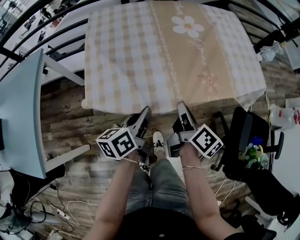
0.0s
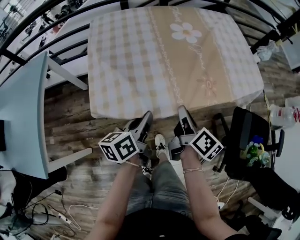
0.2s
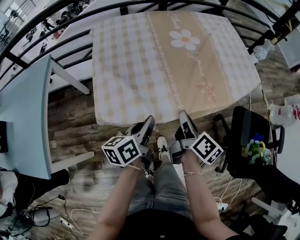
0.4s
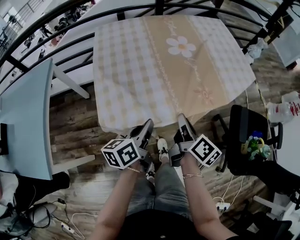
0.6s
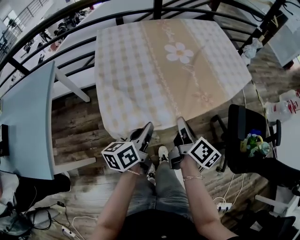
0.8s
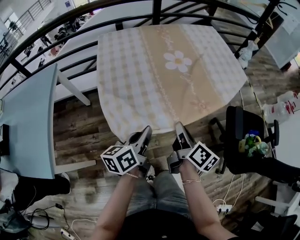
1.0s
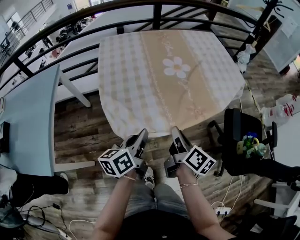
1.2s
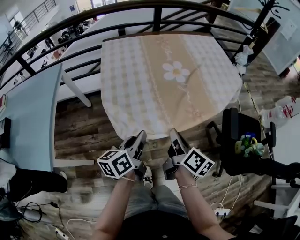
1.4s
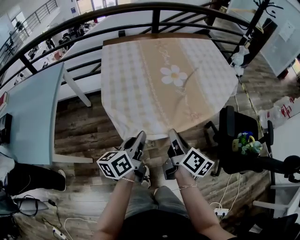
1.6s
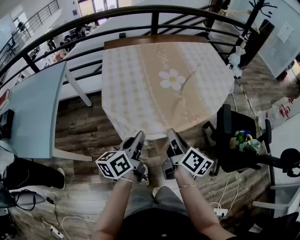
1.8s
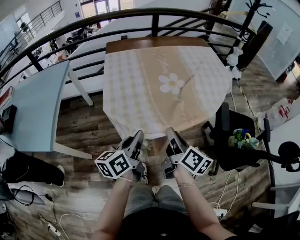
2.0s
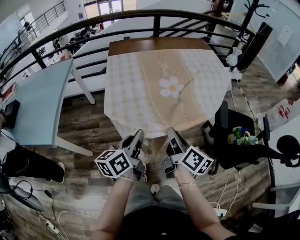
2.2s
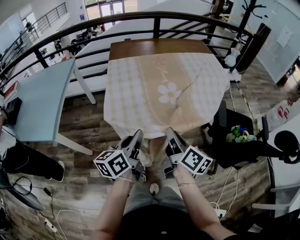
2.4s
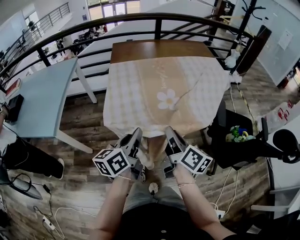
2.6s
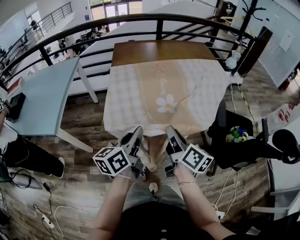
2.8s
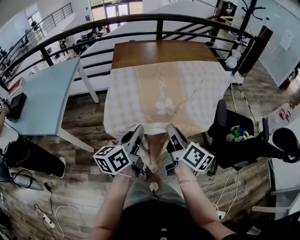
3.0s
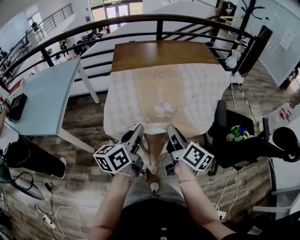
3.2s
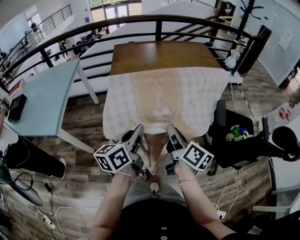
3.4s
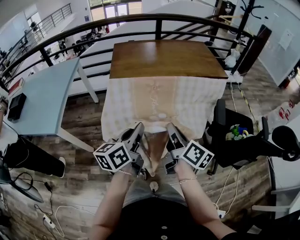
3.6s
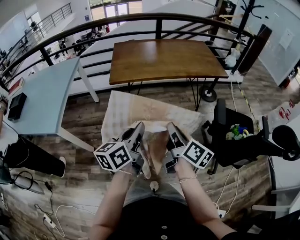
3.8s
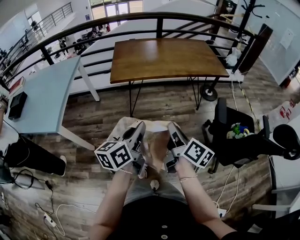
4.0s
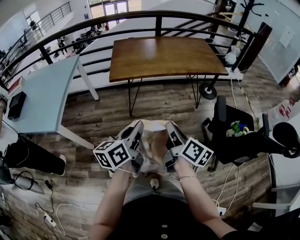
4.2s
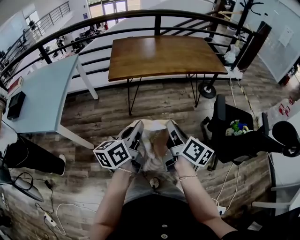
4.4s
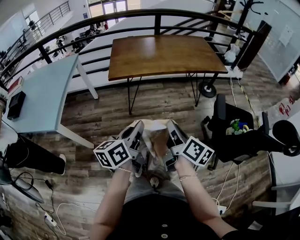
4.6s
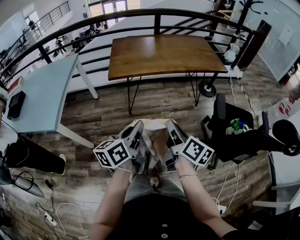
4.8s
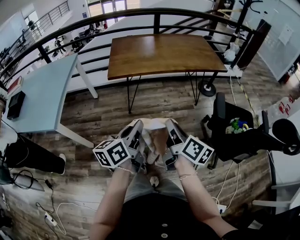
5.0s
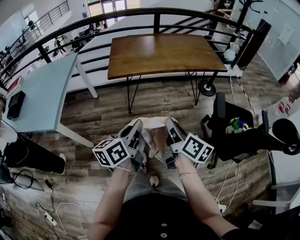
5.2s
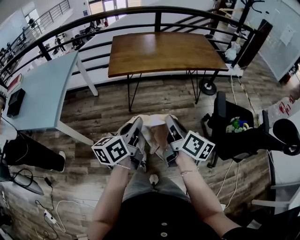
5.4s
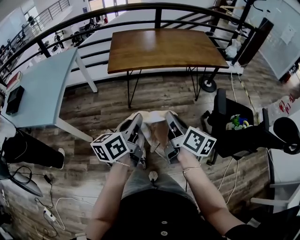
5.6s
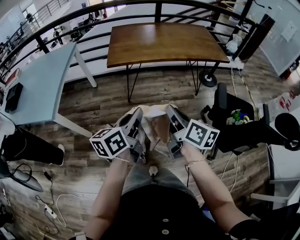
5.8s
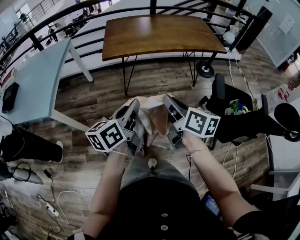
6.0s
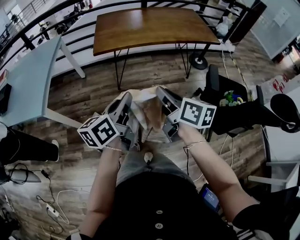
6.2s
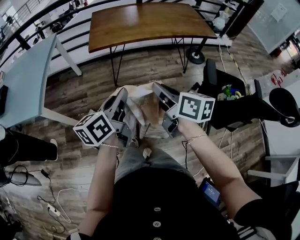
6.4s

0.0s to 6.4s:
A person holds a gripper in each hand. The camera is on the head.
0.0s to 1.6s: The two grippers go roughly 15 cm upward.
1.6s to 3.2s: The grippers both shift backward and upward by roughly 20 cm.
3.2s to 4.8s: There are only small adjustments of the grippers.
4.8s to 6.4s: The right gripper changes its angle by about 20 degrees.

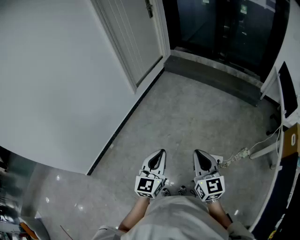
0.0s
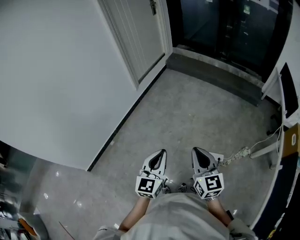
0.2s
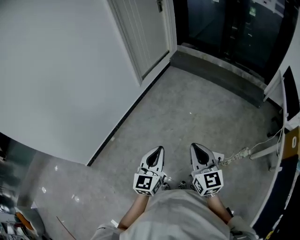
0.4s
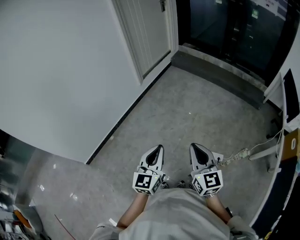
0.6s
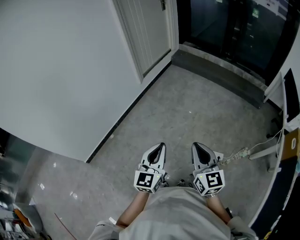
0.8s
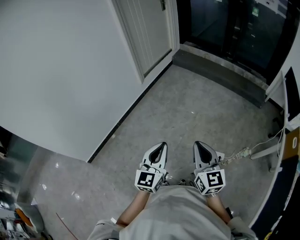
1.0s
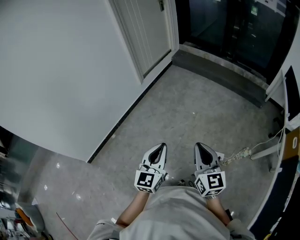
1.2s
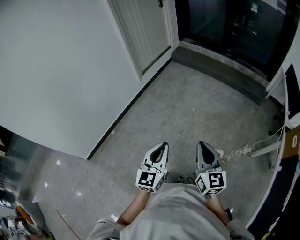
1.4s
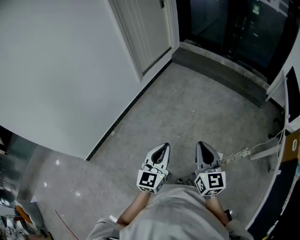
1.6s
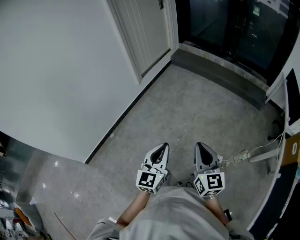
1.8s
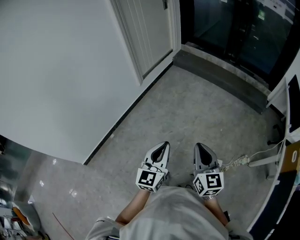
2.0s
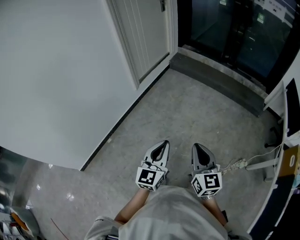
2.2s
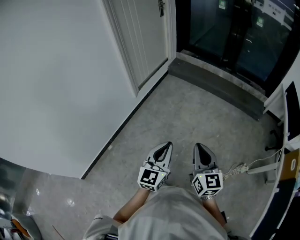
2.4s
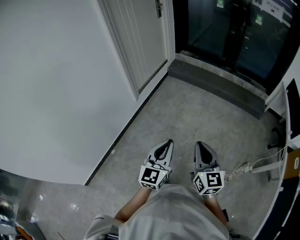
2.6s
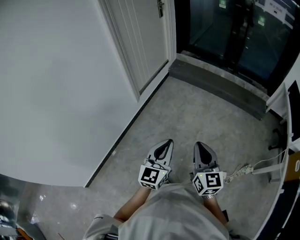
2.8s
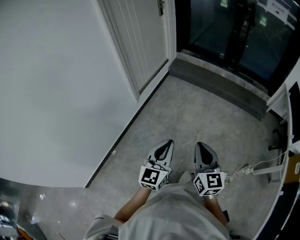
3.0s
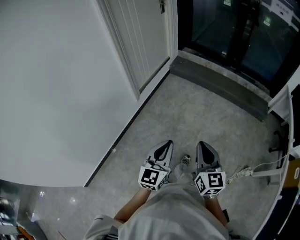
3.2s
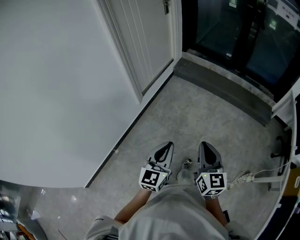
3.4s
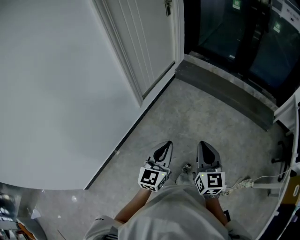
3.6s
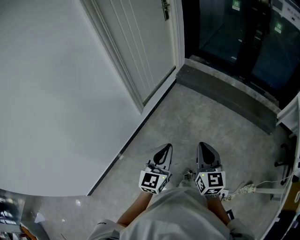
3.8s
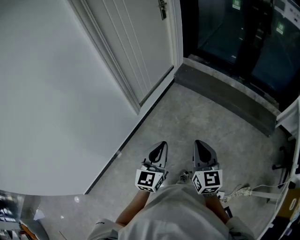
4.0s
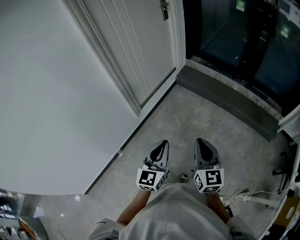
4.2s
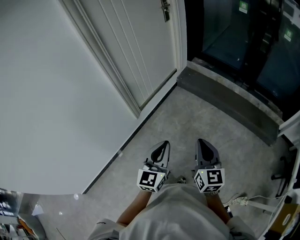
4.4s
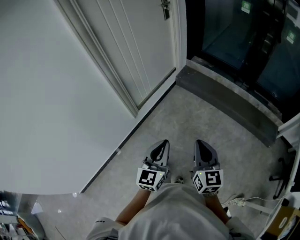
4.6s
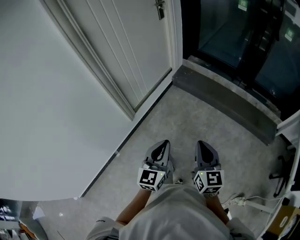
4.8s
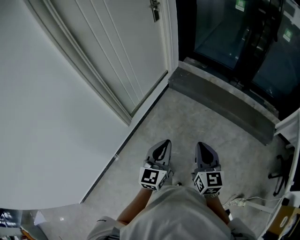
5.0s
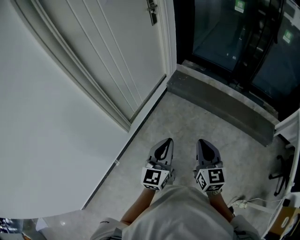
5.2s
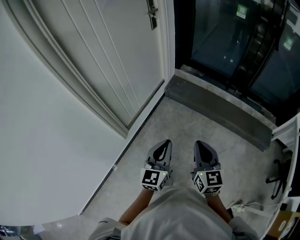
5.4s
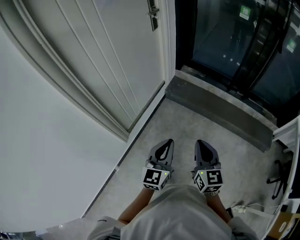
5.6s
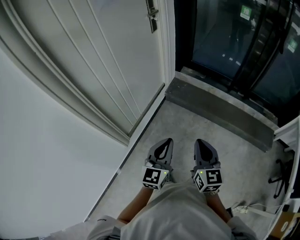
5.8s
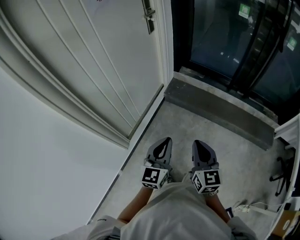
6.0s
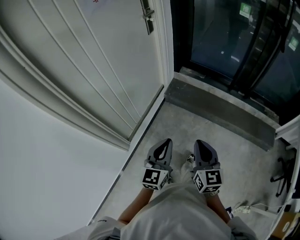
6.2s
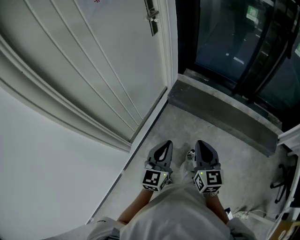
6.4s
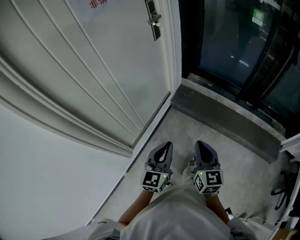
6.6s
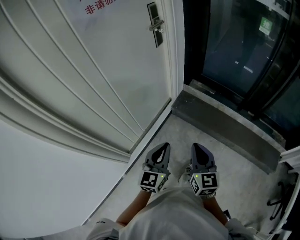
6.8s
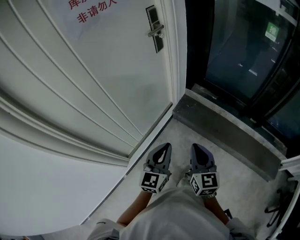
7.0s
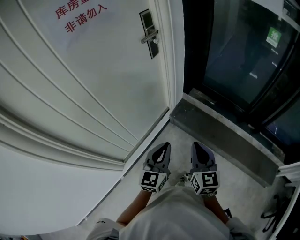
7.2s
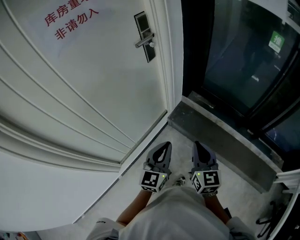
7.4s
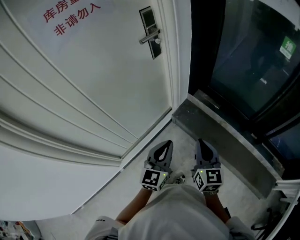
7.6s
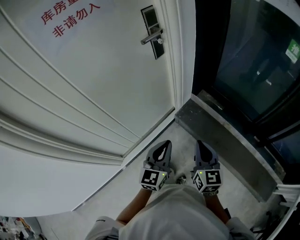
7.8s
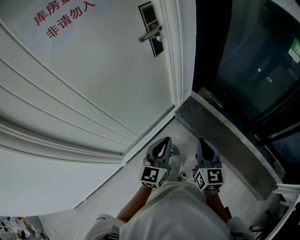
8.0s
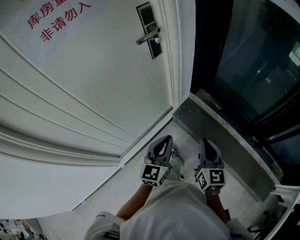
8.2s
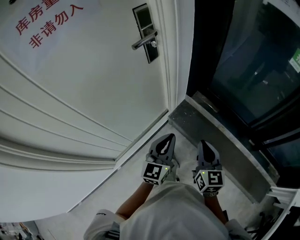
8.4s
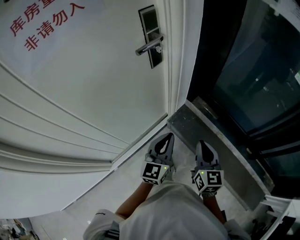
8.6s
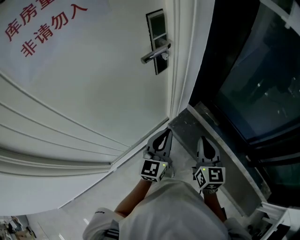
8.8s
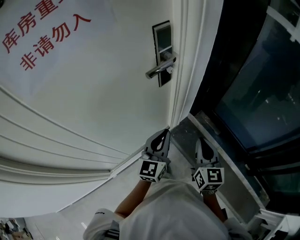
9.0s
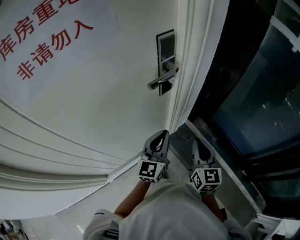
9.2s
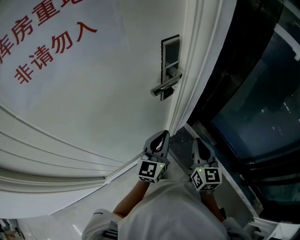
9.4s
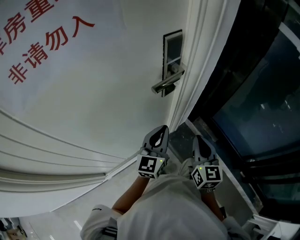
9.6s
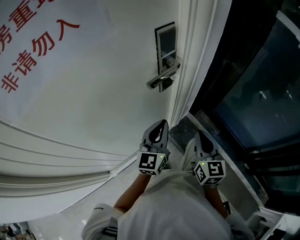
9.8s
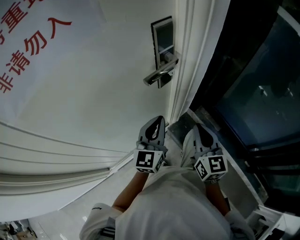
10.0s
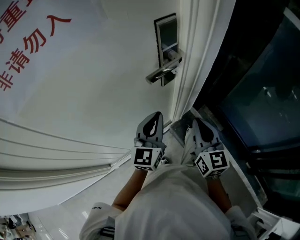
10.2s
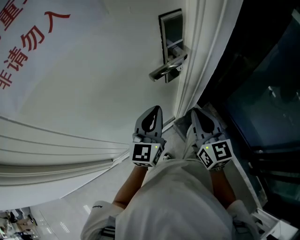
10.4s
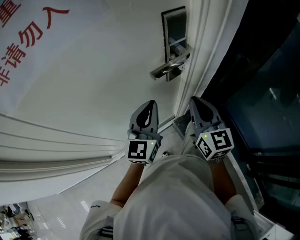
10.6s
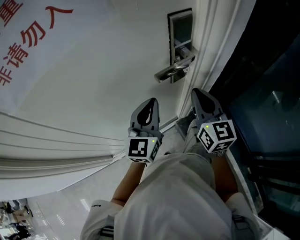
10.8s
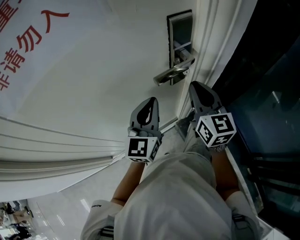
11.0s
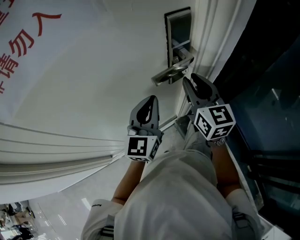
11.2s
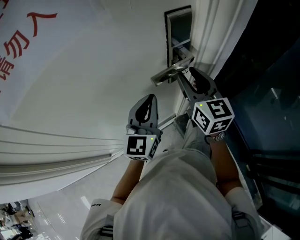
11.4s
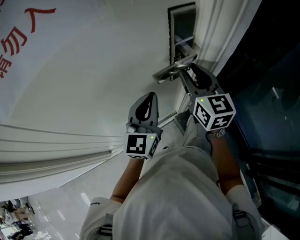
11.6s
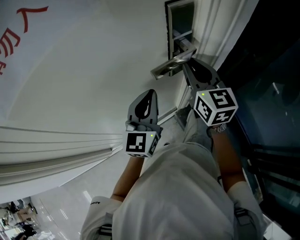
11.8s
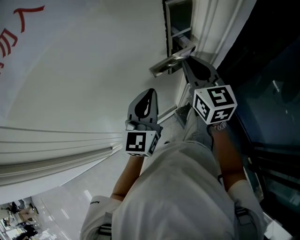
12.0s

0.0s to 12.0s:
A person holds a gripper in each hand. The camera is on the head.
0.0s to 1.6s: The left gripper reaches roughly 5 cm to the left, then returns; the right gripper goes to the left and returns, about 5 cm each way.
1.6s to 3.0s: The grippers both shift forward and to the left by roughly 30 cm.
3.0s to 4.4s: Both grippers move forward, about 30 cm.
4.4s to 6.0s: The grippers both shift forward by some 35 cm.
6.0s to 7.6s: The grippers both shift forward by some 35 cm.
7.6s to 9.0s: The two grippers go some 25 cm forward.
9.0s to 10.4s: The grippers both shift forward and to the left by about 10 cm.
10.4s to 12.0s: The right gripper travels forward by some 15 cm, and opens, then closes again.

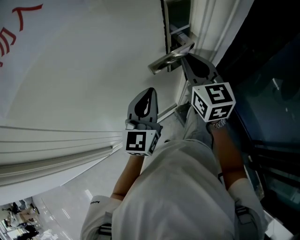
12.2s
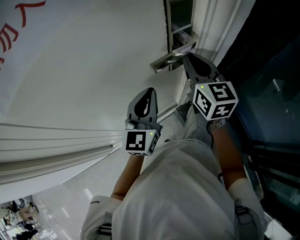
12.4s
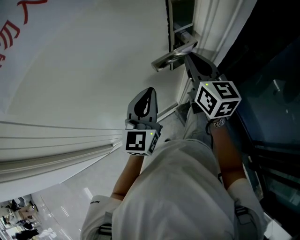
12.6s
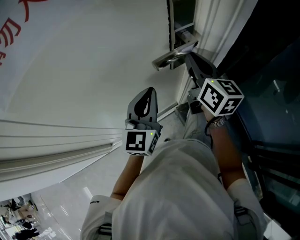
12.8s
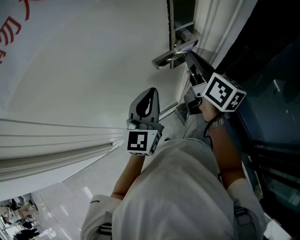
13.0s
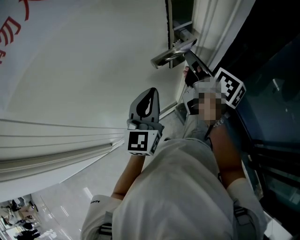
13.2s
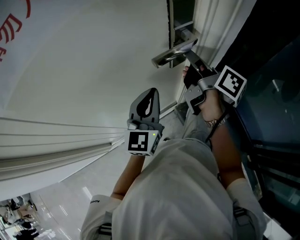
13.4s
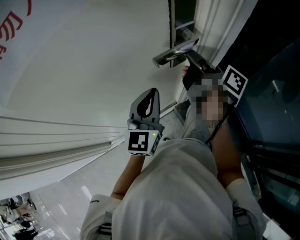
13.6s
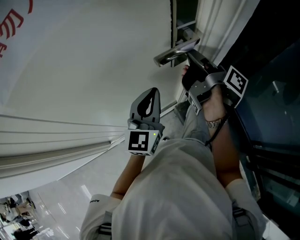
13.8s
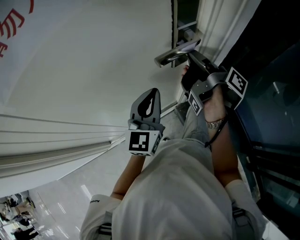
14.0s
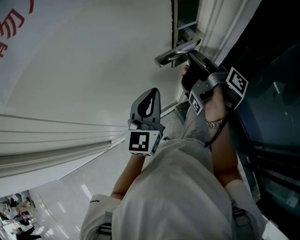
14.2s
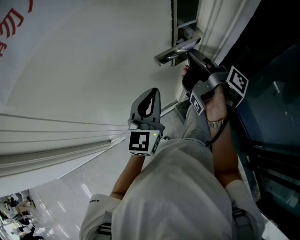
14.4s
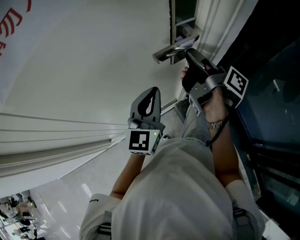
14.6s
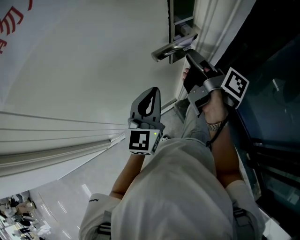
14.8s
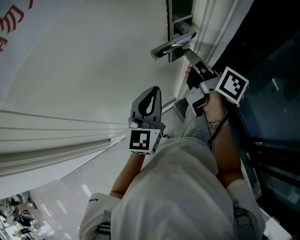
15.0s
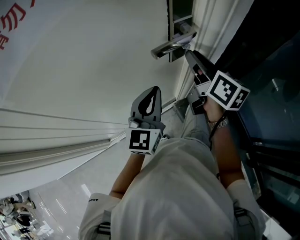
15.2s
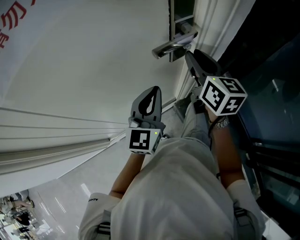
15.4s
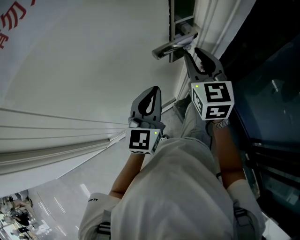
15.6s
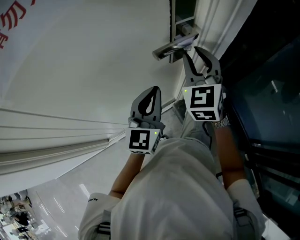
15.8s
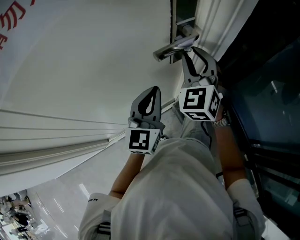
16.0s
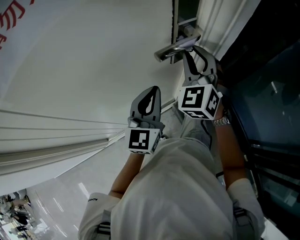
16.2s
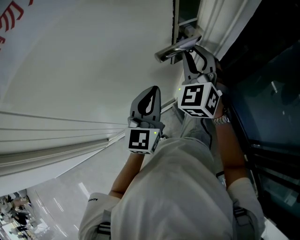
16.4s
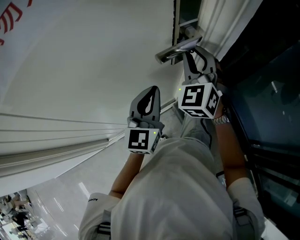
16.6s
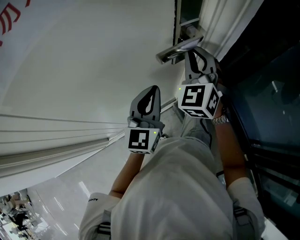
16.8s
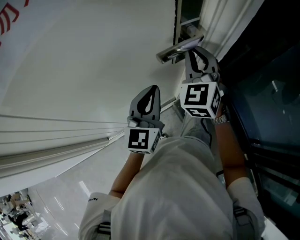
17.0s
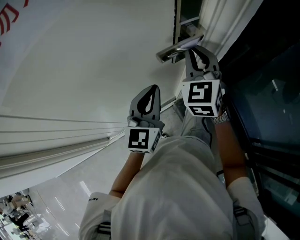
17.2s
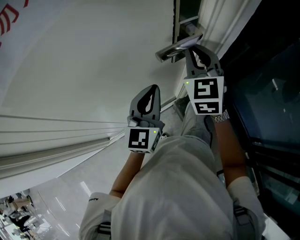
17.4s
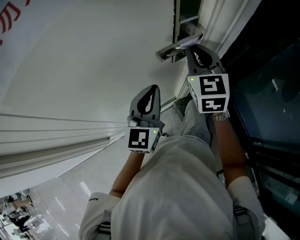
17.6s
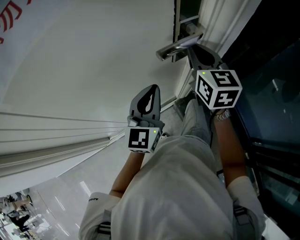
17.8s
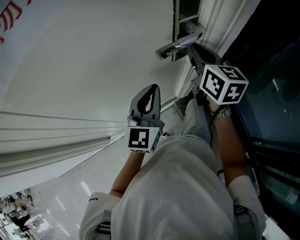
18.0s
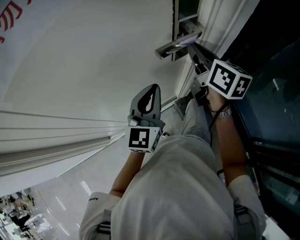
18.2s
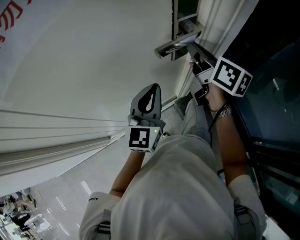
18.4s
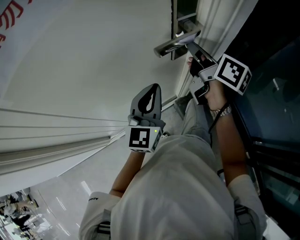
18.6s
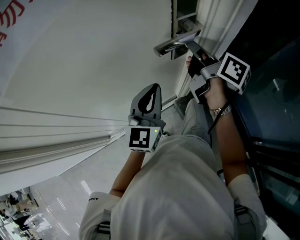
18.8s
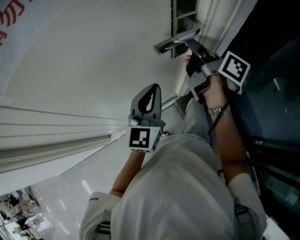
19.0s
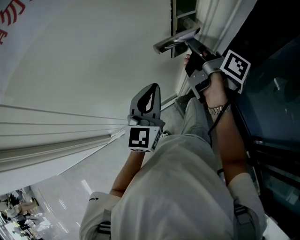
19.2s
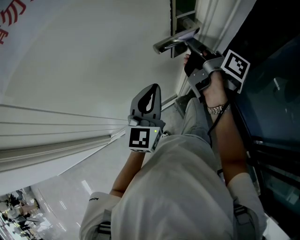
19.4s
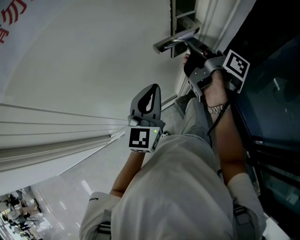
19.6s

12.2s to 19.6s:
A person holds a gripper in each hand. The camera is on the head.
12.2s to 13.6s: The right gripper rolls clockwise, seen from behind, by roughly 80 degrees.
13.6s to 15.2s: The right gripper rotates some 40 degrees, and opens up.
15.2s to 16.6s: The right gripper rotates around the line of its fingers by some 80 degrees, counterclockwise from behind.
16.6s to 18.2s: The right gripper rolls clockwise, seen from behind, by approximately 70 degrees.
18.2s to 19.6s: The right gripper rotates around the line of its fingers by about 50 degrees, clockwise from behind.
